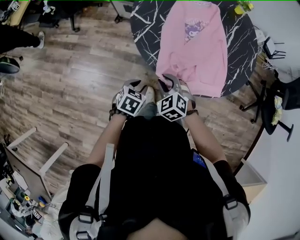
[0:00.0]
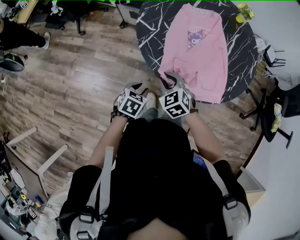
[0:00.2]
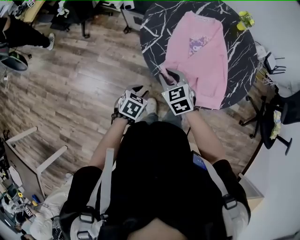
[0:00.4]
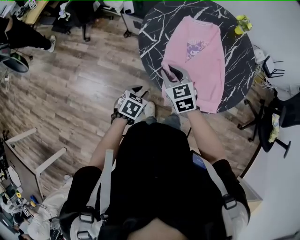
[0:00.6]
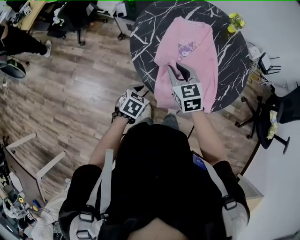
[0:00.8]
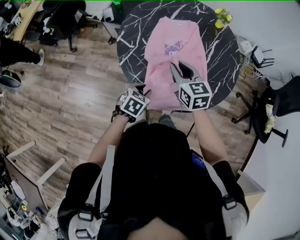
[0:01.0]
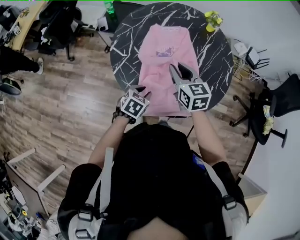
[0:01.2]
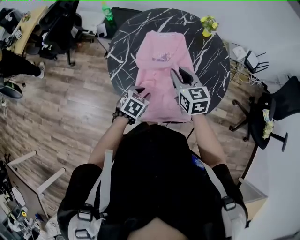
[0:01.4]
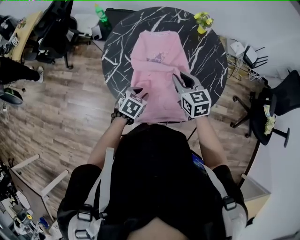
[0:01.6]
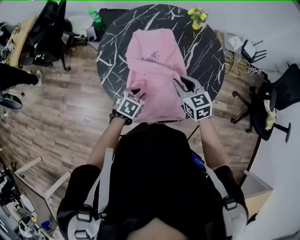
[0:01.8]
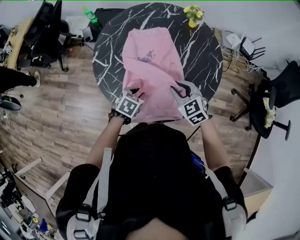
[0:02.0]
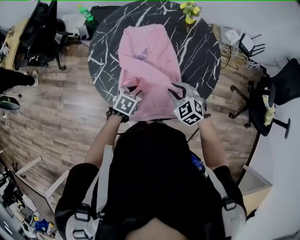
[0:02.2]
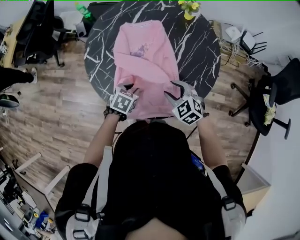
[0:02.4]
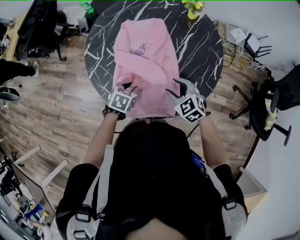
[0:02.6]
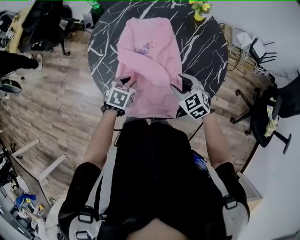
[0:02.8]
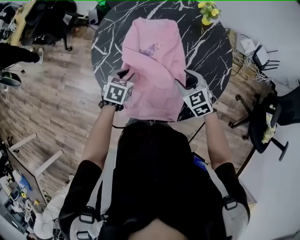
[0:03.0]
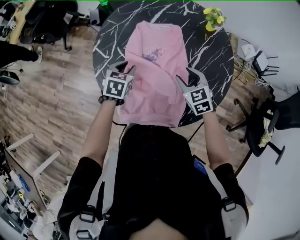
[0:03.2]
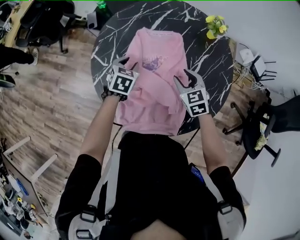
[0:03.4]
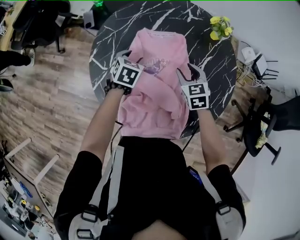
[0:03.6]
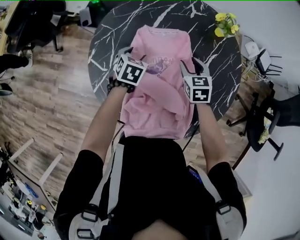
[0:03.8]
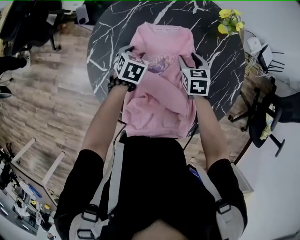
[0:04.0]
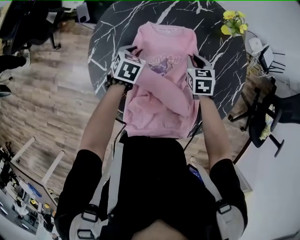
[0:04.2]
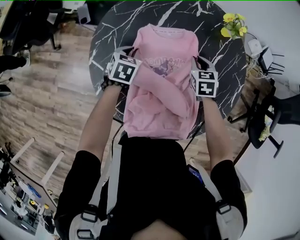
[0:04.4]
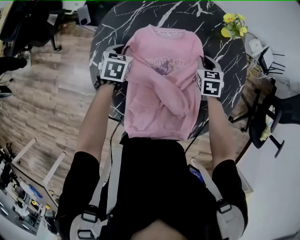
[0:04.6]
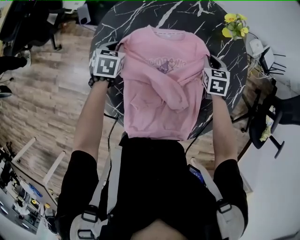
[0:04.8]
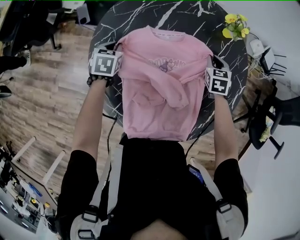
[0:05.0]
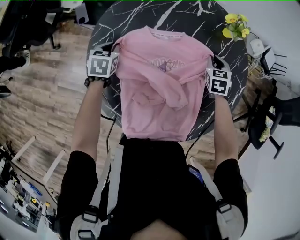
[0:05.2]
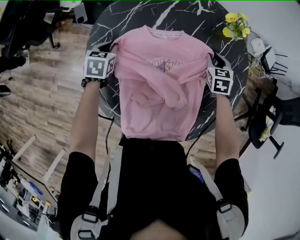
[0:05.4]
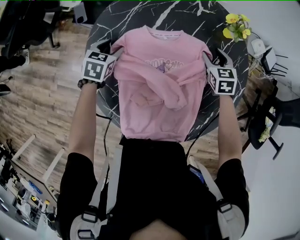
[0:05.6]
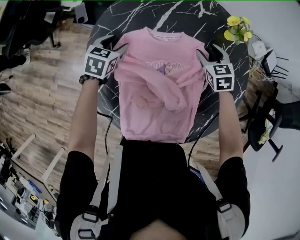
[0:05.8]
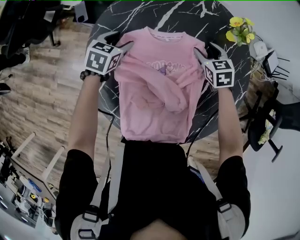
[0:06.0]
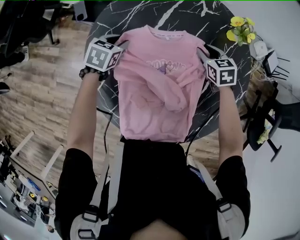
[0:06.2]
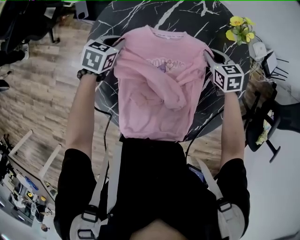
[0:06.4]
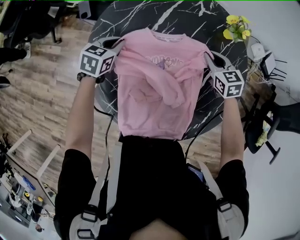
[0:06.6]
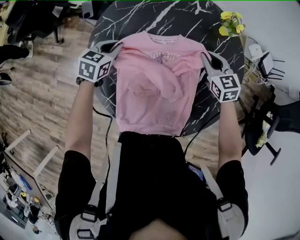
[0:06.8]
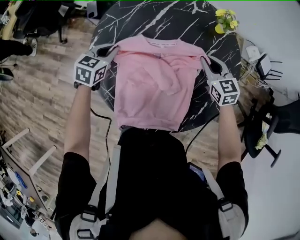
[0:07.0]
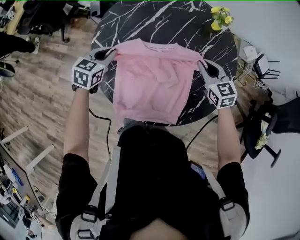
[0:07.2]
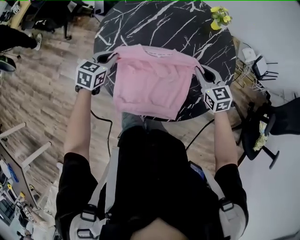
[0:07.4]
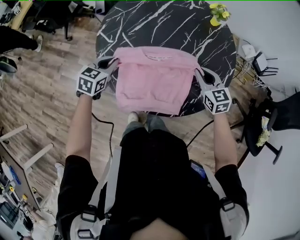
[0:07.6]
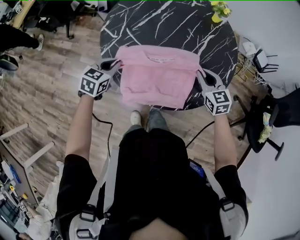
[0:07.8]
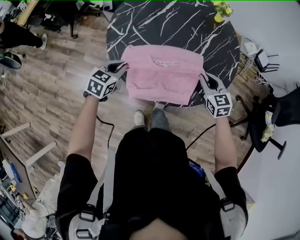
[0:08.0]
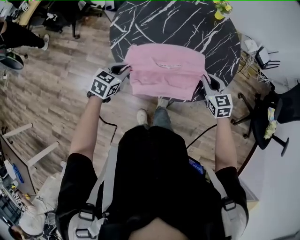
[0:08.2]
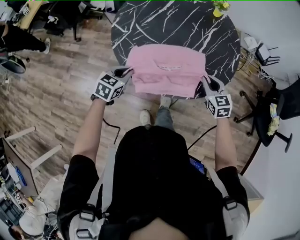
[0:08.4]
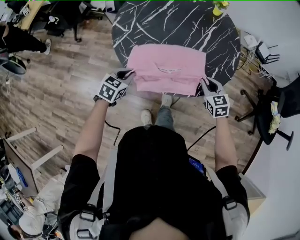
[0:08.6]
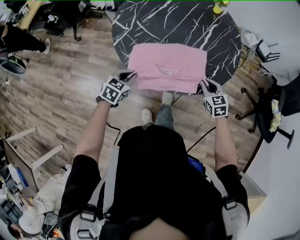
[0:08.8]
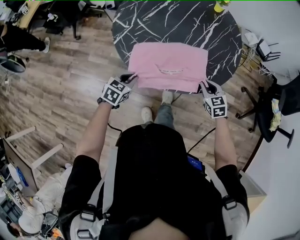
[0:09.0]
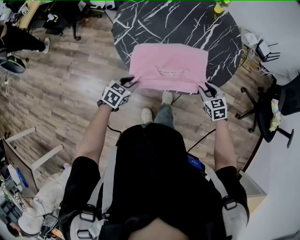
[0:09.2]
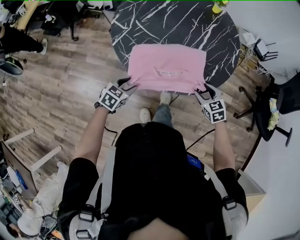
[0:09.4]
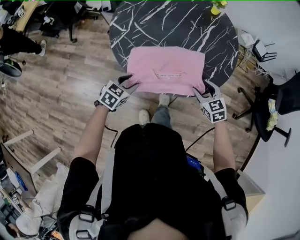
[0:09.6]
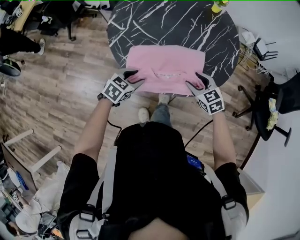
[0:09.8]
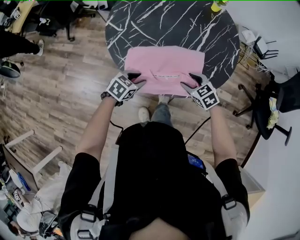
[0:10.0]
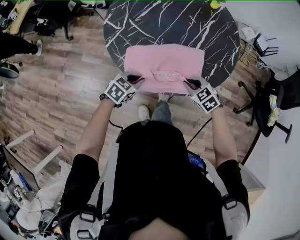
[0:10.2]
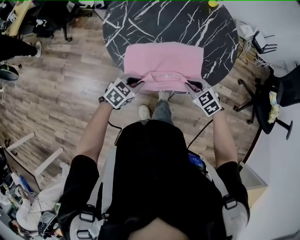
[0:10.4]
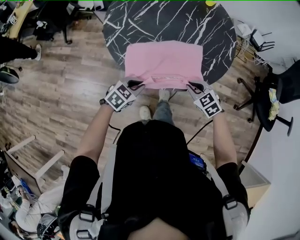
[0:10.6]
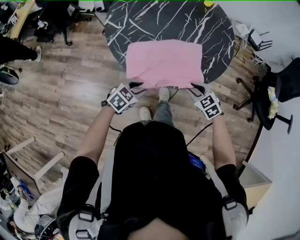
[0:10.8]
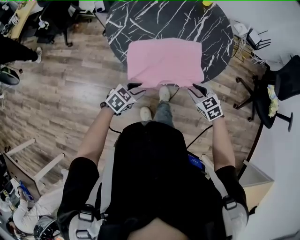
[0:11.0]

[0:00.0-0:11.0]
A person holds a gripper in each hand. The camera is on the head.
0.0 to 1.6 s: The left gripper moves forward, to the right and upward, some 25 cm, while the right gripper goes some 35 cm to the right, forward and upward, and changes its angle by some 40 degrees.
1.6 to 3.2 s: The right gripper is displaced downward, to the right and forward by approximately 10 cm, and turns by some 20 degrees; the left gripper travels forward by about 15 cm, and turns by approximately 20 degrees.
3.2 to 4.8 s: The right gripper moves forward and downward, some 20 cm, changes its angle by roughly 30 degrees, and closes its fingers. Meanwhile the left gripper is displaced forward, to the left and downward by roughly 20 cm.
4.8 to 6.2 s: The right gripper ends up about 5 cm from where it was, and swivels about 20 degrees.
6.2 to 7.8 s: The right gripper goes about 30 cm backward and upward, and rotates some 20 degrees; the left gripper heads backward, covering approximately 30 cm.
7.8 to 9.4 s: The two grippers go roughly 20 cm backward and downward. The right gripper opens. The left gripper opens its fingers.
9.4 to 11.0 s: The right gripper is displaced backward by about 5 cm. The left gripper is displaced to the right by some 5 cm.

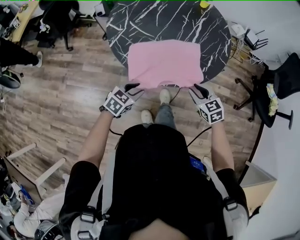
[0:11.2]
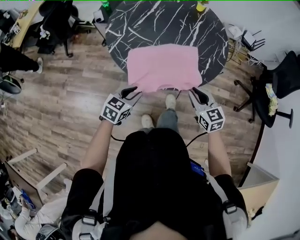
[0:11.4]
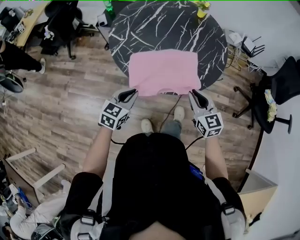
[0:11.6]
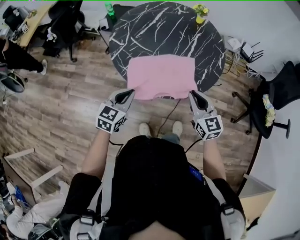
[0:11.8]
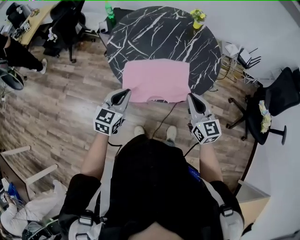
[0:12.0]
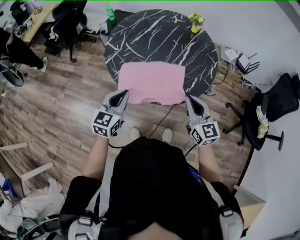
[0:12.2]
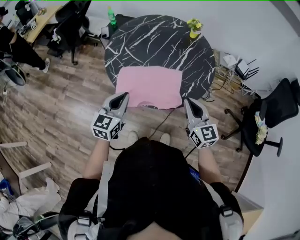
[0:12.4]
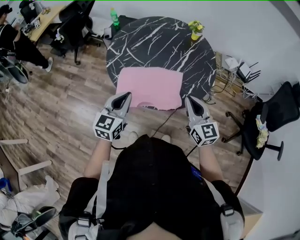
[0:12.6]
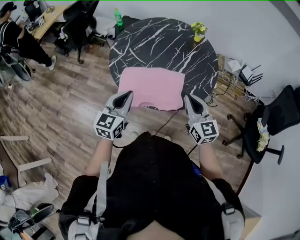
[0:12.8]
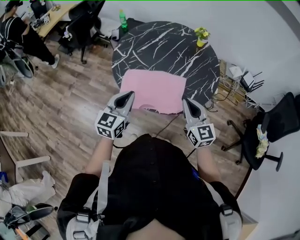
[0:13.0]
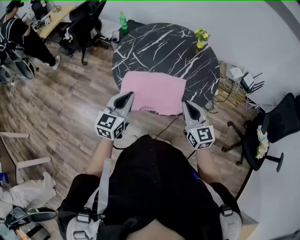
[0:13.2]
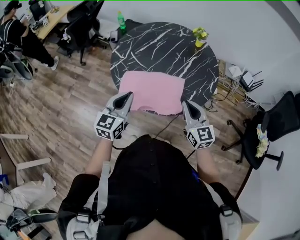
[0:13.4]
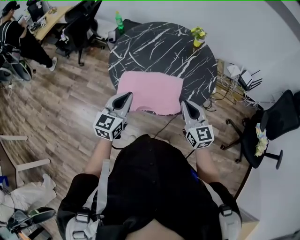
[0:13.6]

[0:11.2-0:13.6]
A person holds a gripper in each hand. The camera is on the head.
11.2 to 12.4 s: Both grippers travel together upward, roughly 20 cm. The left gripper rotates about 40 degrees. The right gripper angles its fingers upward, by about 30 degrees, and closes its fingers.
12.4 to 13.6 s: The grippers make only small movements.

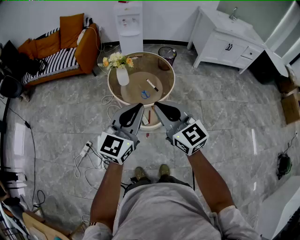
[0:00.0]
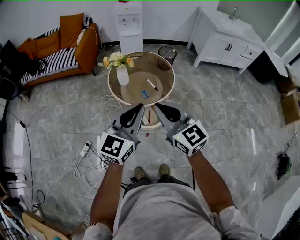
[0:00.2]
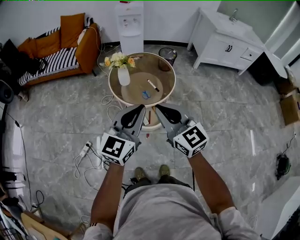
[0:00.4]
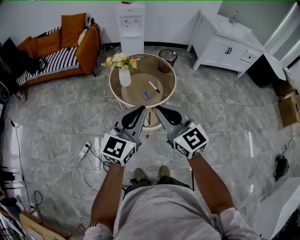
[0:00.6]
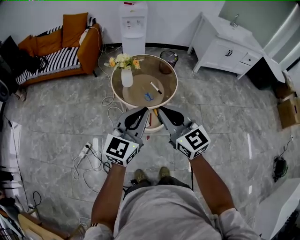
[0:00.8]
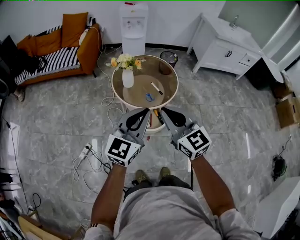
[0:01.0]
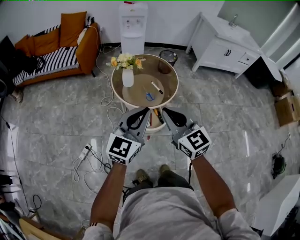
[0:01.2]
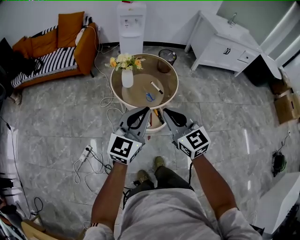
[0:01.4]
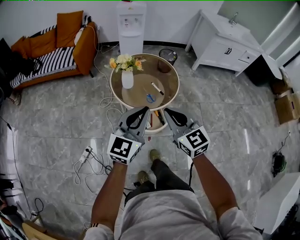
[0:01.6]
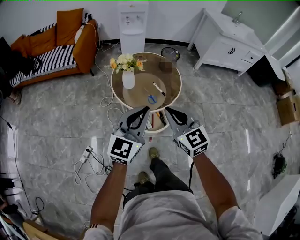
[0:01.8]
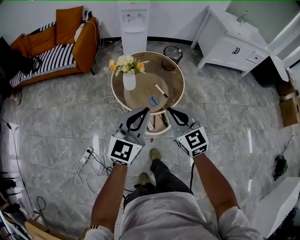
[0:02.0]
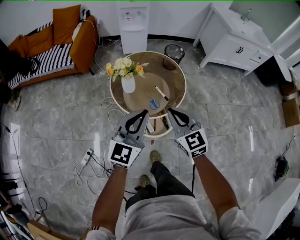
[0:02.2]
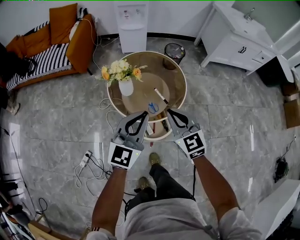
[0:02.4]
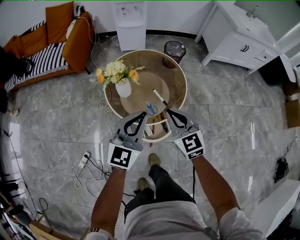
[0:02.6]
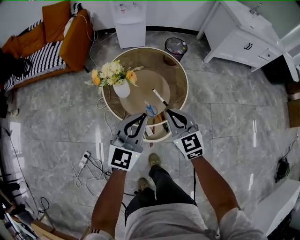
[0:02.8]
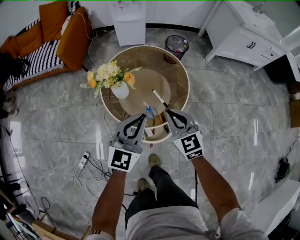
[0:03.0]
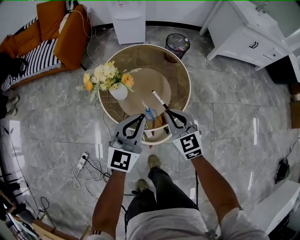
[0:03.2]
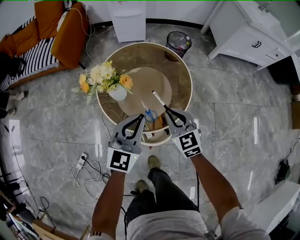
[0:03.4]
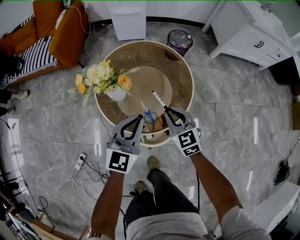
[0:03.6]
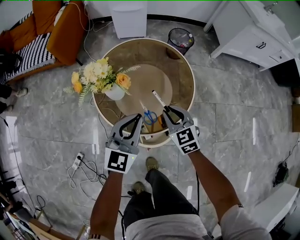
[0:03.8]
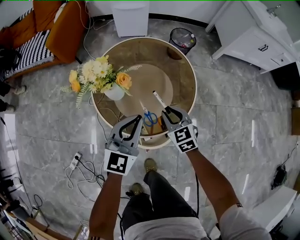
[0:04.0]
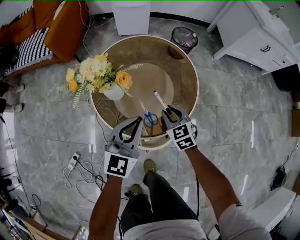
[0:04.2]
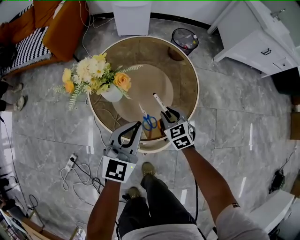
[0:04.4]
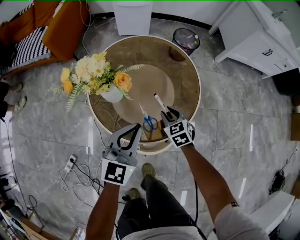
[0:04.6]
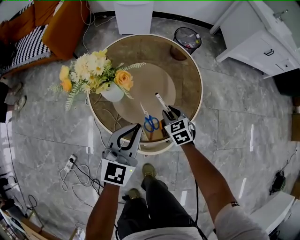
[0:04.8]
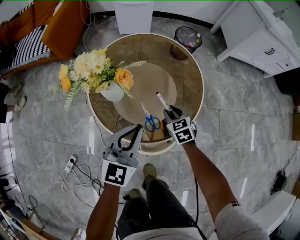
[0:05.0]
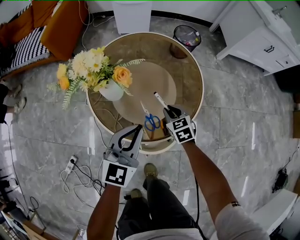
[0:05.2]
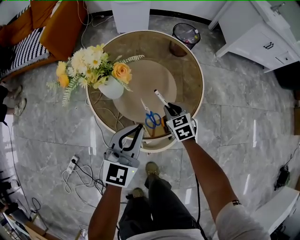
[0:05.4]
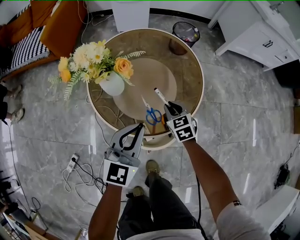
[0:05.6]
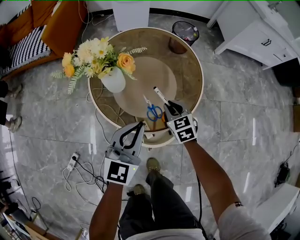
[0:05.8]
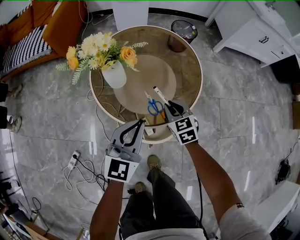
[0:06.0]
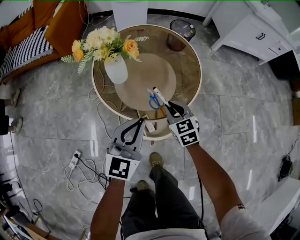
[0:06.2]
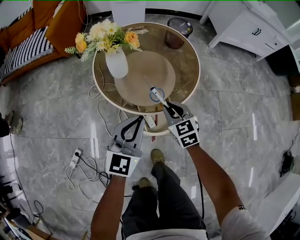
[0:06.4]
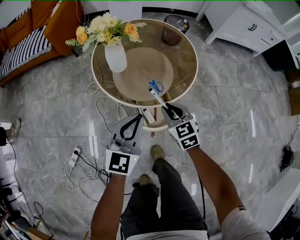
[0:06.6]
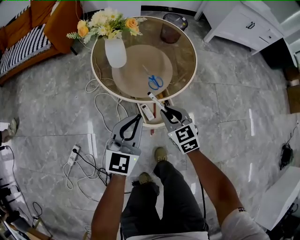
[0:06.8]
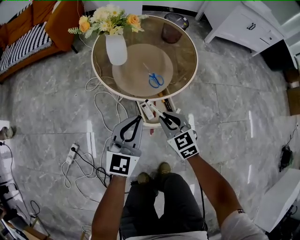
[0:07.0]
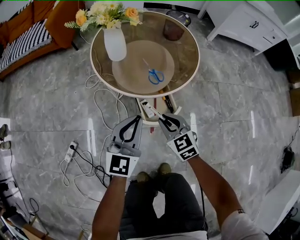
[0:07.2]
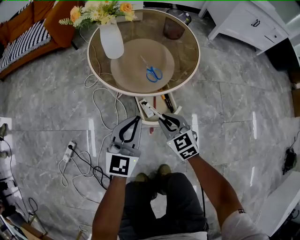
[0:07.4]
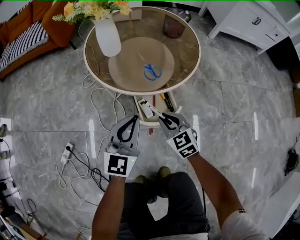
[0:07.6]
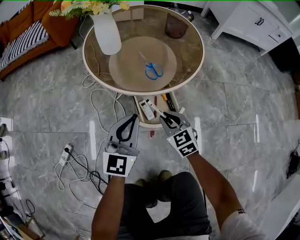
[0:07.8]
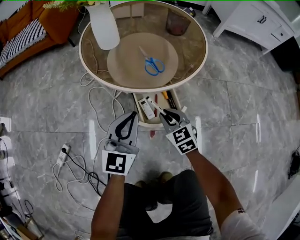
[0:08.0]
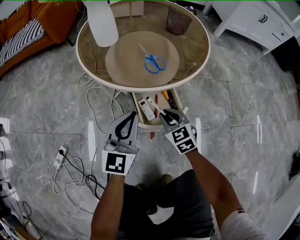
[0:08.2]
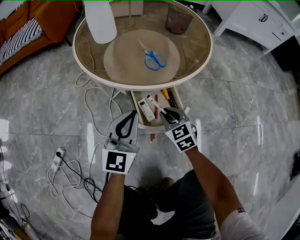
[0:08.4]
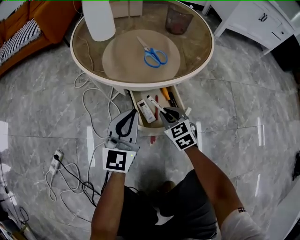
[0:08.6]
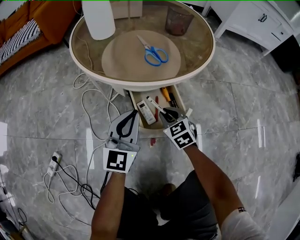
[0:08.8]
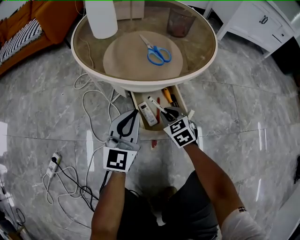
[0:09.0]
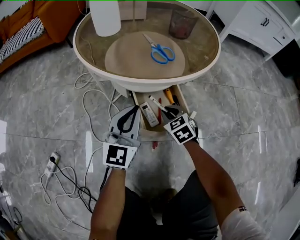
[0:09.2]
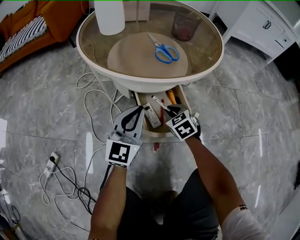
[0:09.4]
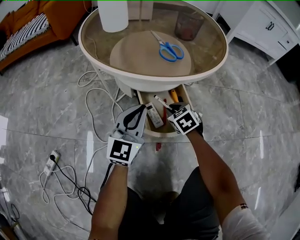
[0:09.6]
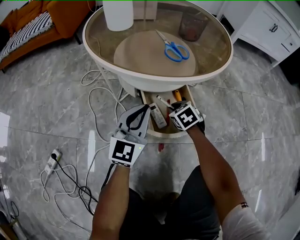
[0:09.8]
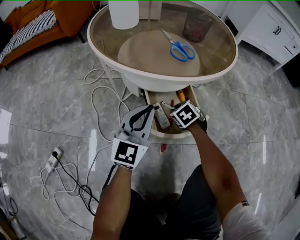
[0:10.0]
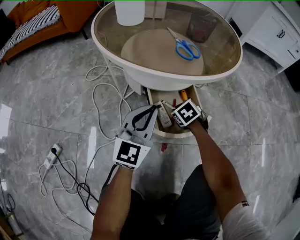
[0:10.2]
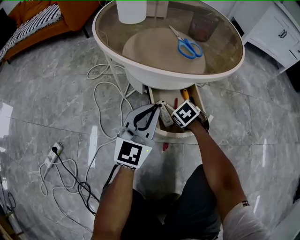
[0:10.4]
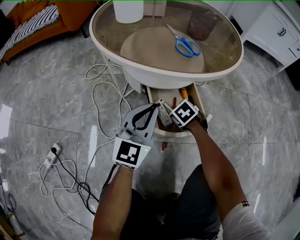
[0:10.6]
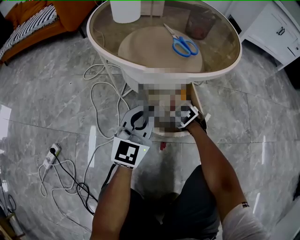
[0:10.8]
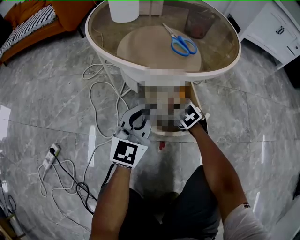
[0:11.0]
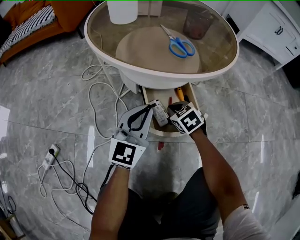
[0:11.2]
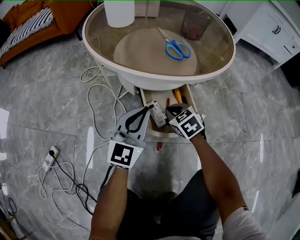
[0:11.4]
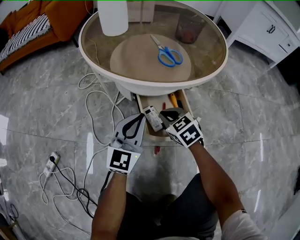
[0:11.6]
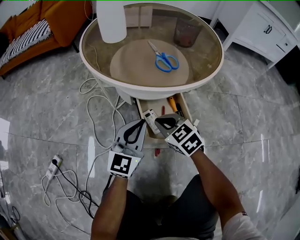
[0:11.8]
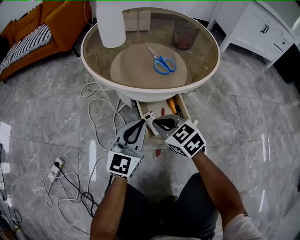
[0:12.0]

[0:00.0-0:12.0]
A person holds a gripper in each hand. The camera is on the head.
0.0 to 1.6 s: The left gripper shifts roughly 5 cm to the left. The right gripper heads downward and to the left, covering about 10 cm.
1.6 to 3.0 s: The two grippers go some 30 cm forward and downward.
3.0 to 4.4 s: The left gripper moves downward, roughly 15 cm. The right gripper heads downward, covering about 25 cm, turns by some 20 degrees, and opens.
4.4 to 6.0 s: The left gripper is displaced backward by some 5 cm.
6.0 to 7.6 s: The right gripper is displaced backward by roughly 20 cm. Meanwhile the left gripper shifts roughly 20 cm backward and downward.
7.6 to 9.0 s: Both grippers move downward, some 20 cm.
9.0 to 10.4 s: The right gripper moves downward, approximately 10 cm, and changes its angle by approximately 30 degrees.
10.4 to 12.0 s: The right gripper shifts roughly 20 cm upward, and angles its fingers upward, by roughly 40 degrees.
